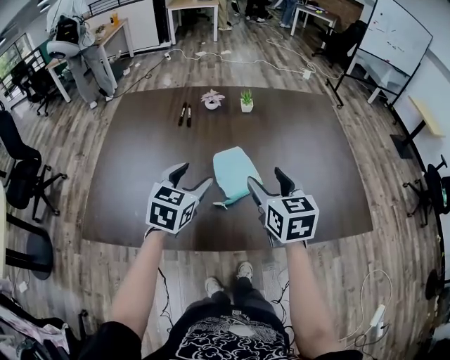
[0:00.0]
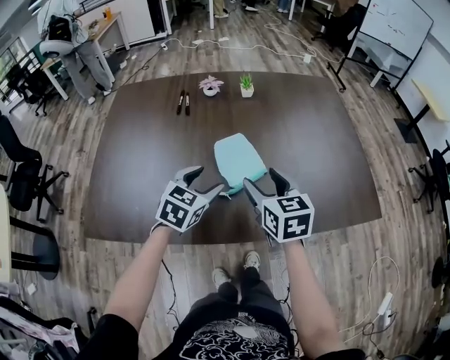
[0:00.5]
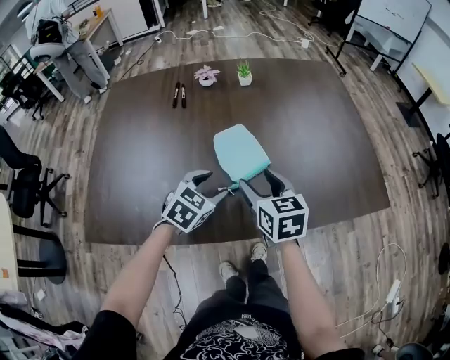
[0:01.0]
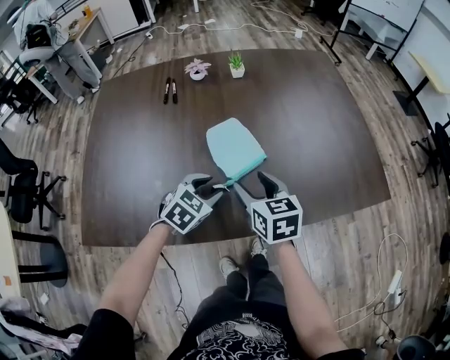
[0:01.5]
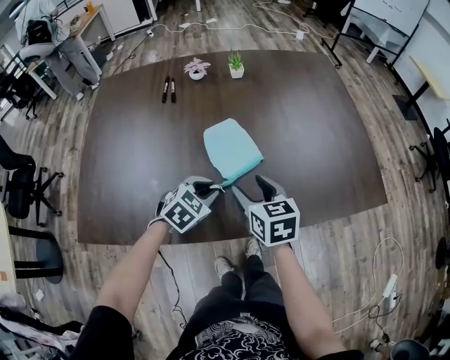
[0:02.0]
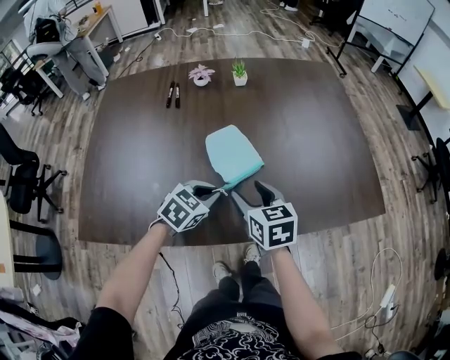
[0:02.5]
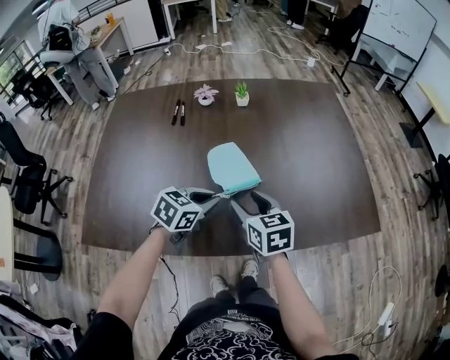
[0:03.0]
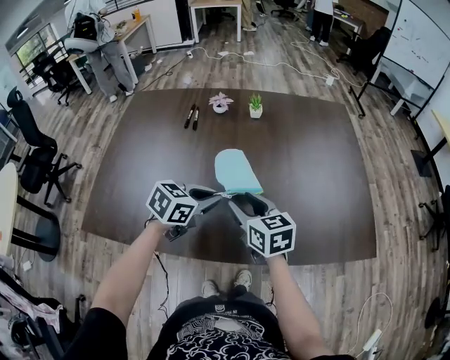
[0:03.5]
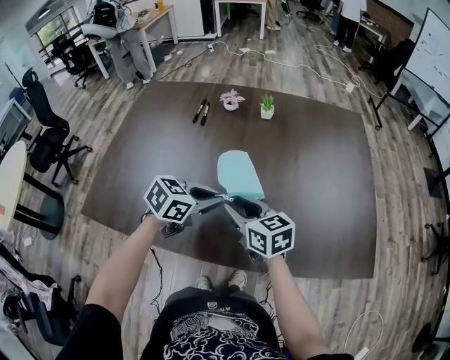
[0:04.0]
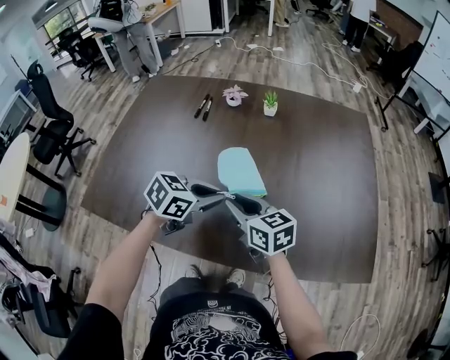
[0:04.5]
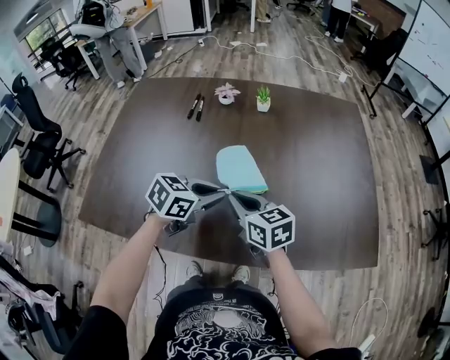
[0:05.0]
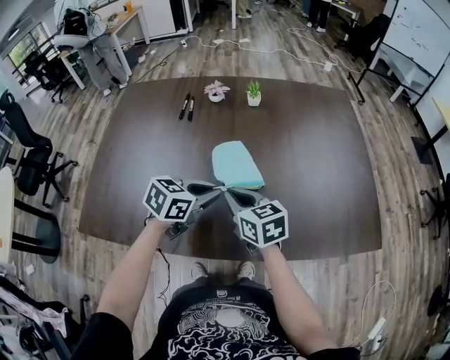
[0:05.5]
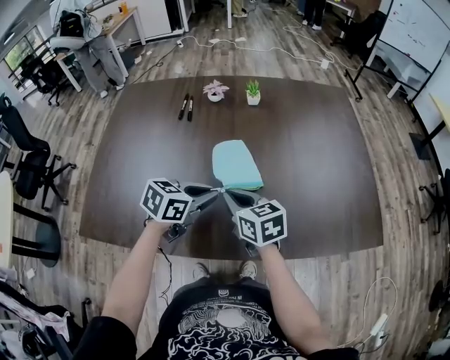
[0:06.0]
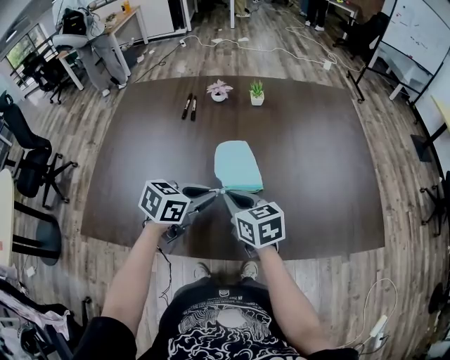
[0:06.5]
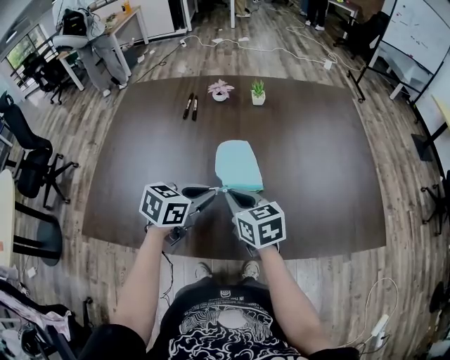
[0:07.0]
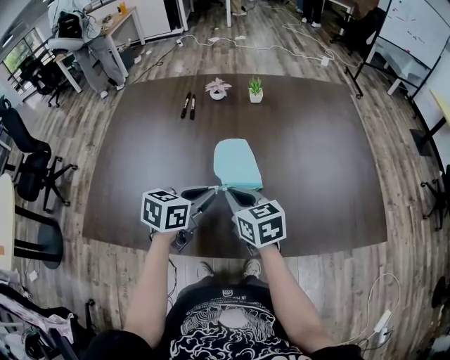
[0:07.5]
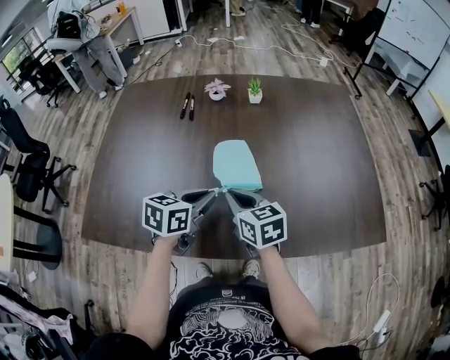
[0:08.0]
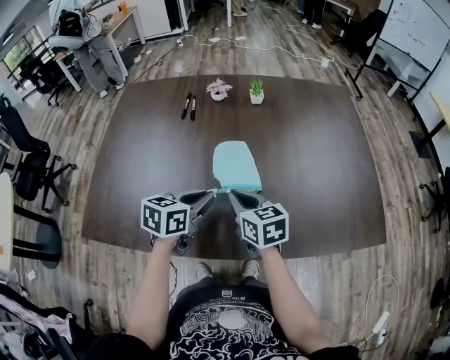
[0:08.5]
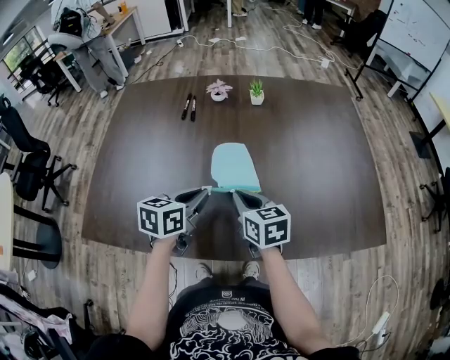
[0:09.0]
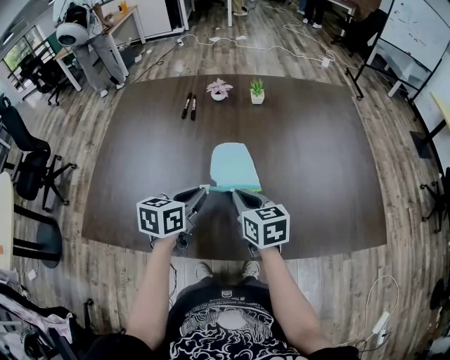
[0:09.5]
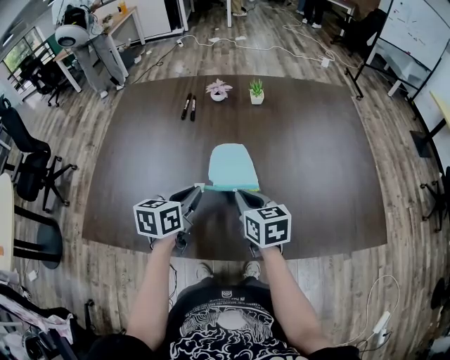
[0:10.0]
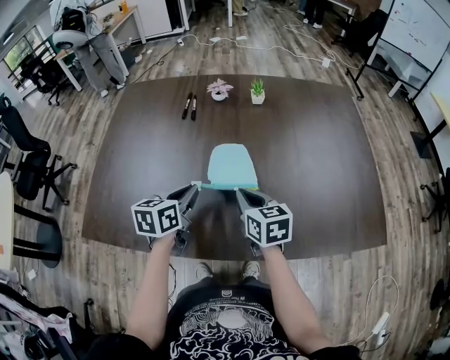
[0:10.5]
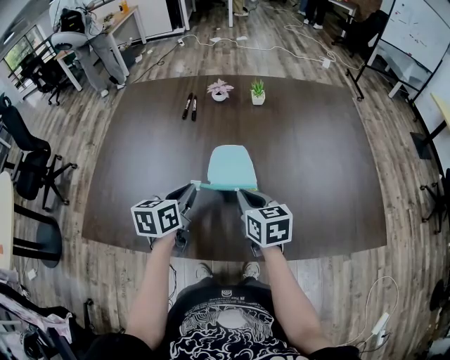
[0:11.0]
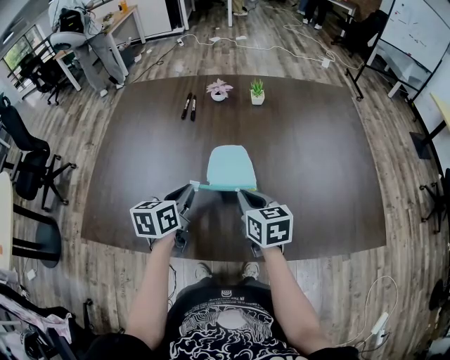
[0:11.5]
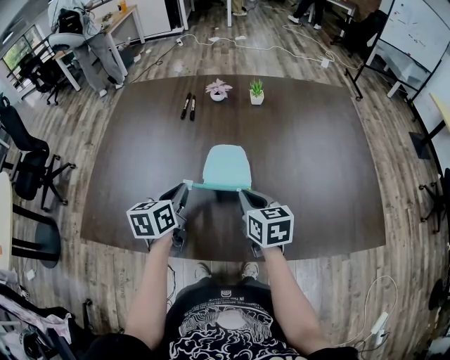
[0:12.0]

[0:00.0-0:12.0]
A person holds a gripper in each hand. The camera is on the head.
0:00.0 to 0:02.0: The grippers both shift downward by roughly 15 cm. The left gripper changes its angle by some 40 degrees, and closes.
0:02.0 to 0:04.0: The left gripper travels upward by some 10 cm, and changes its angle by about 30 degrees, while the right gripper ends up about 5 cm from where it was, changes its angle by about 30 degrees, and closes.
0:04.0 to 0:06.0: The right gripper closes its fingers.
0:06.0 to 0:08.0: The grippers stay close to where they were, moving slightly.
0:08.0 to 0:10.0: The left gripper ends up approximately 5 cm from where it was.
0:10.0 to 0:12.0: There are only small adjustments of the grippers.

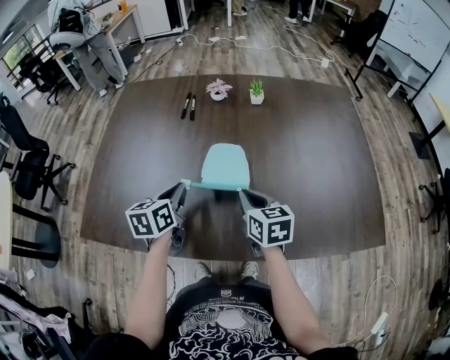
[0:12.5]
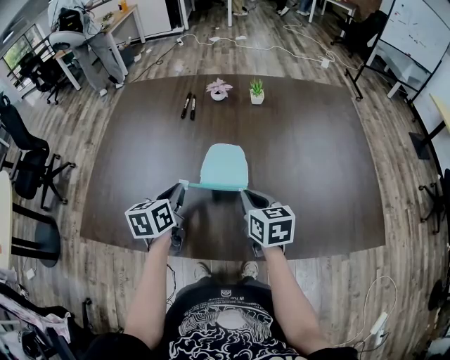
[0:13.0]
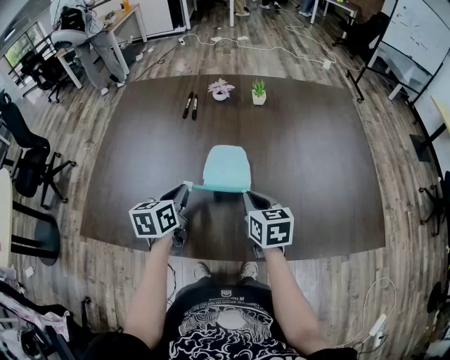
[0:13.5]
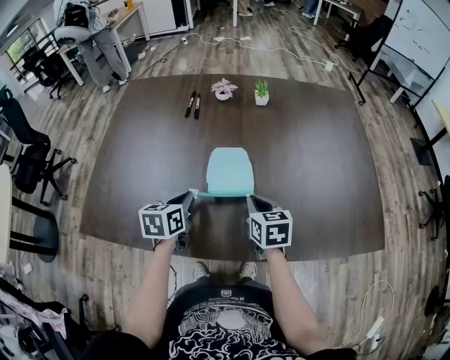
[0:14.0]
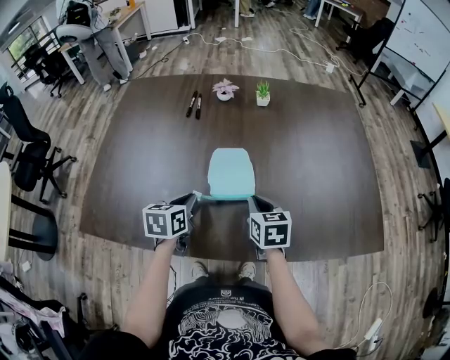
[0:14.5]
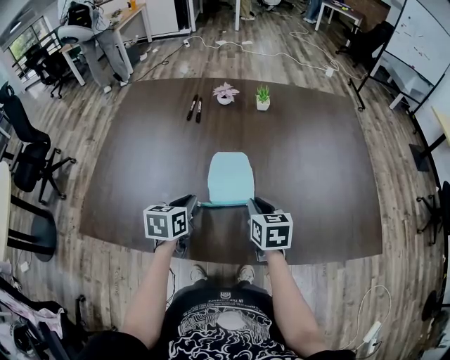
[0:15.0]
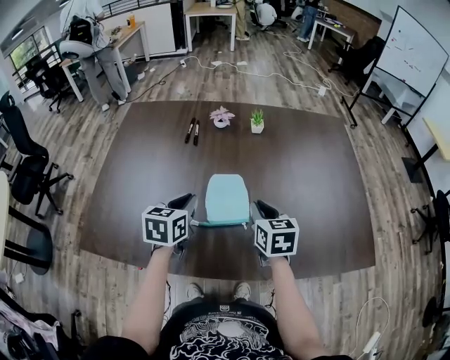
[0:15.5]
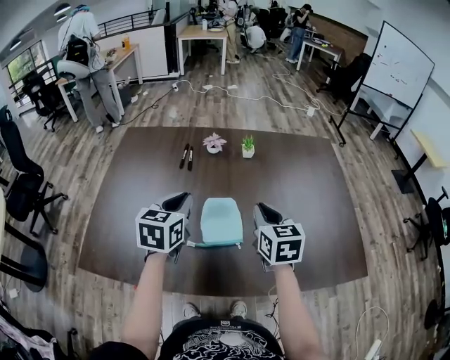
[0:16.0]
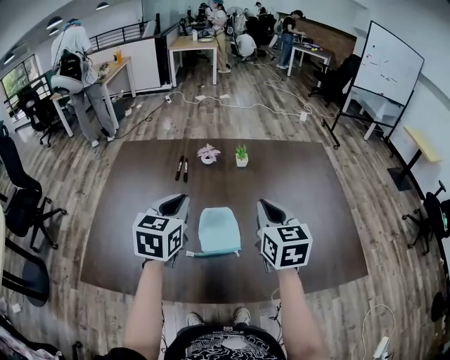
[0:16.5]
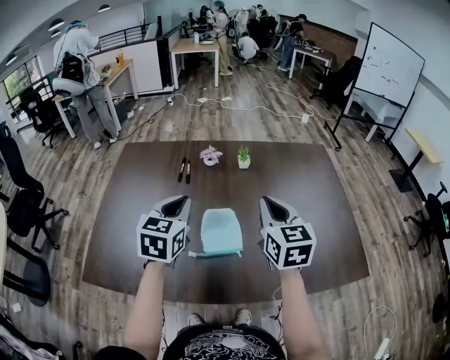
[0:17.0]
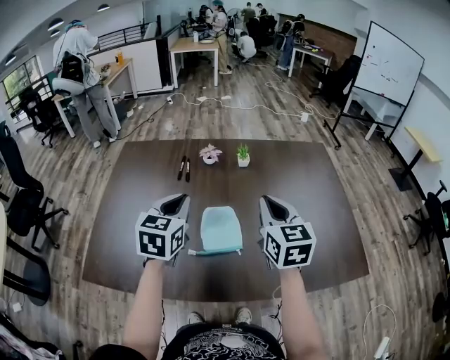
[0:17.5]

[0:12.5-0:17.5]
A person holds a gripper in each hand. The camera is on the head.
0:12.5 to 0:15.0: The left gripper ends up roughly 5 cm from where it was.
0:15.0 to 0:17.5: Both grippers travel together upward, roughly 25 cm. The right gripper changes its angle by approximately 30 degrees. The left gripper changes its angle by approximately 30 degrees.

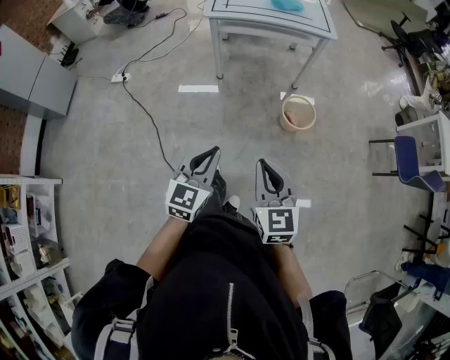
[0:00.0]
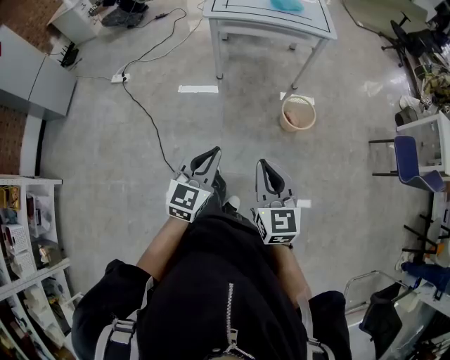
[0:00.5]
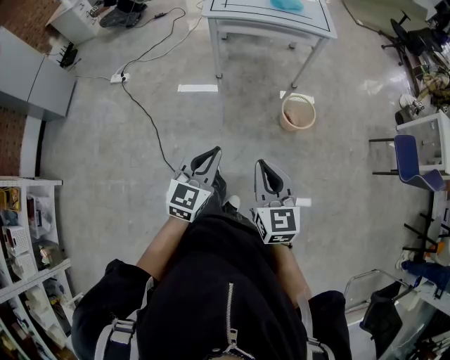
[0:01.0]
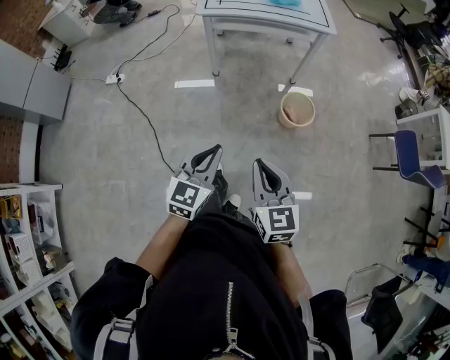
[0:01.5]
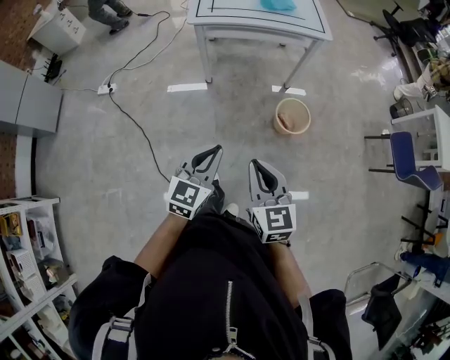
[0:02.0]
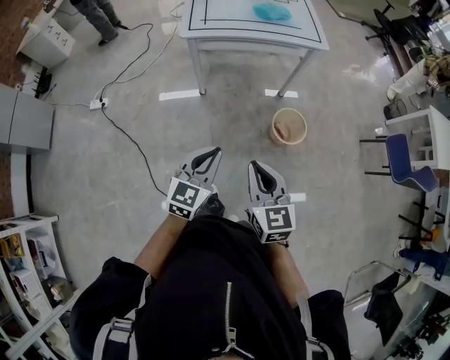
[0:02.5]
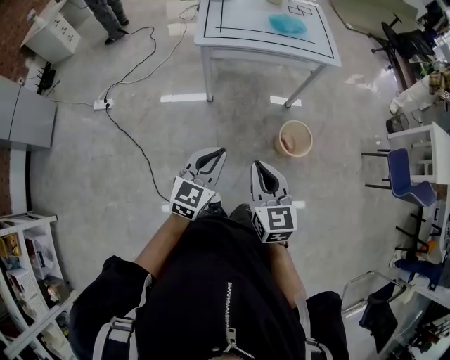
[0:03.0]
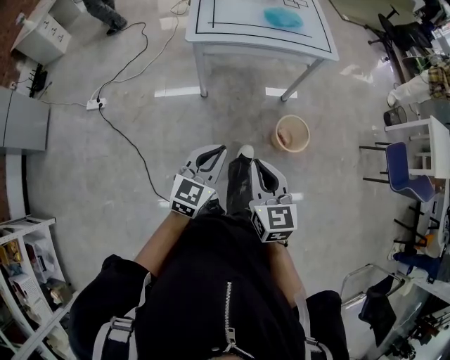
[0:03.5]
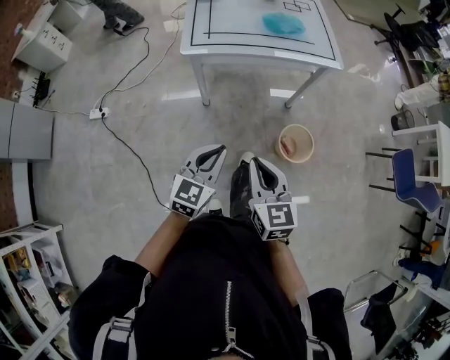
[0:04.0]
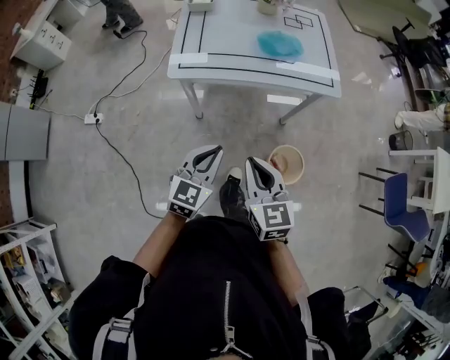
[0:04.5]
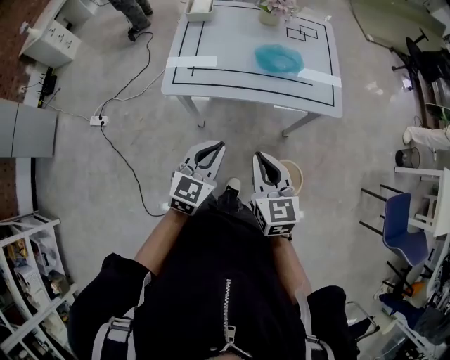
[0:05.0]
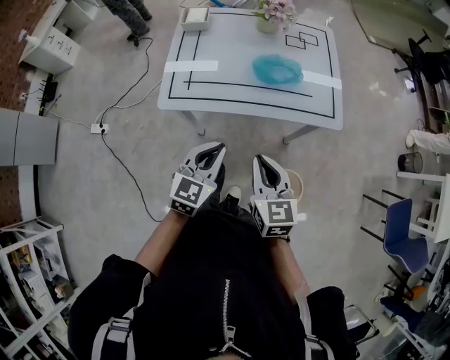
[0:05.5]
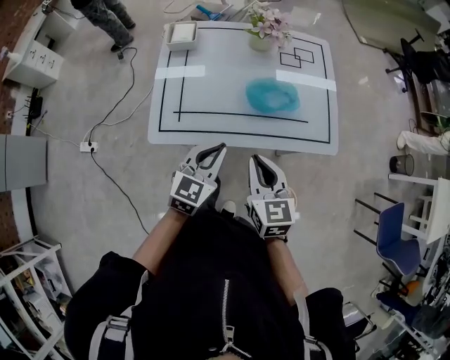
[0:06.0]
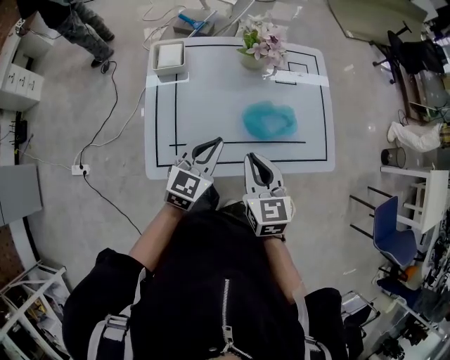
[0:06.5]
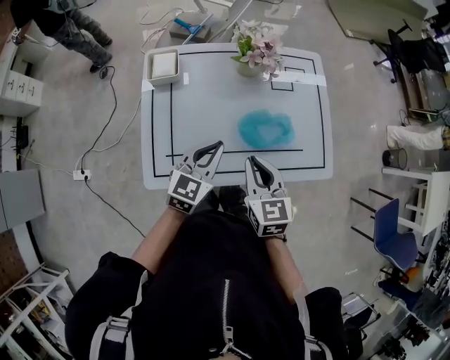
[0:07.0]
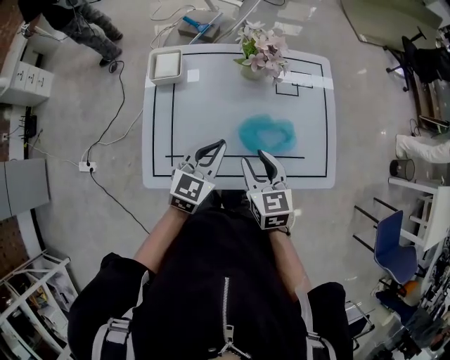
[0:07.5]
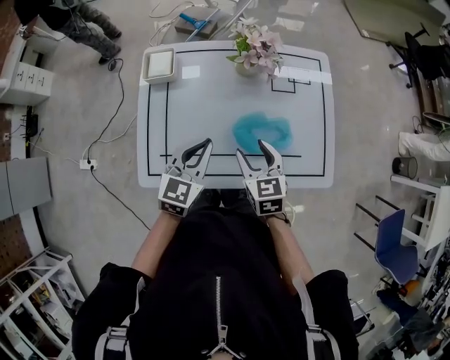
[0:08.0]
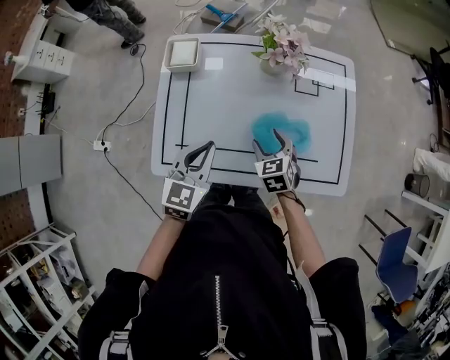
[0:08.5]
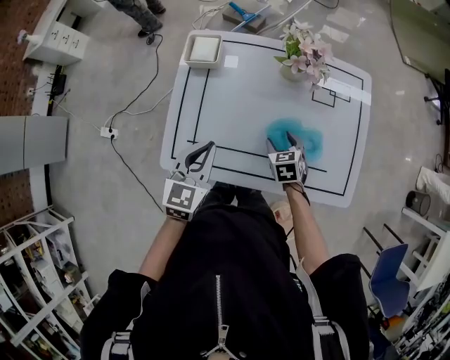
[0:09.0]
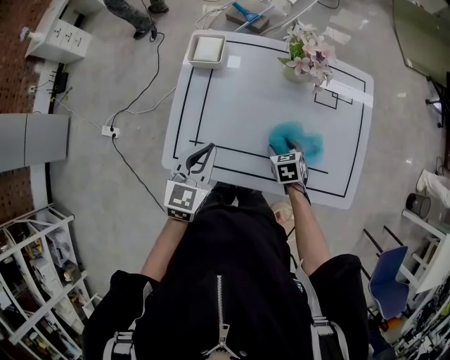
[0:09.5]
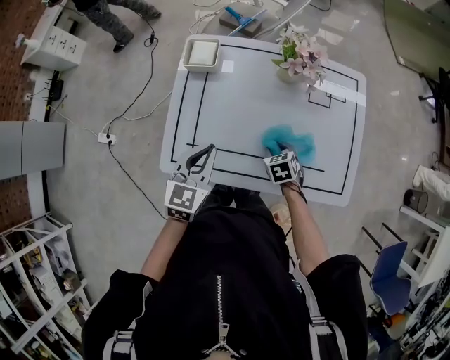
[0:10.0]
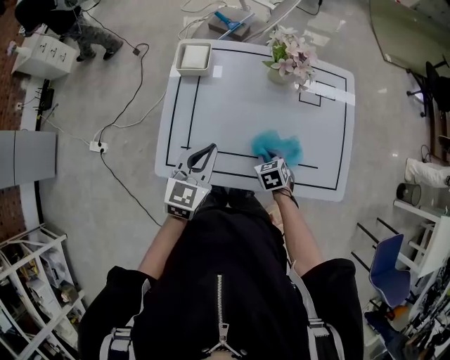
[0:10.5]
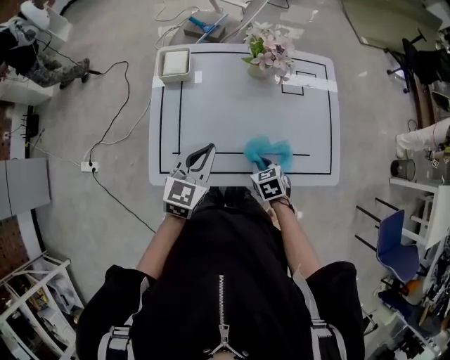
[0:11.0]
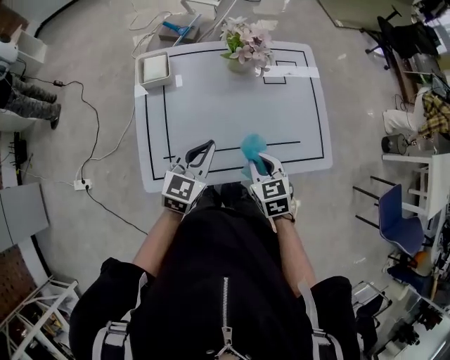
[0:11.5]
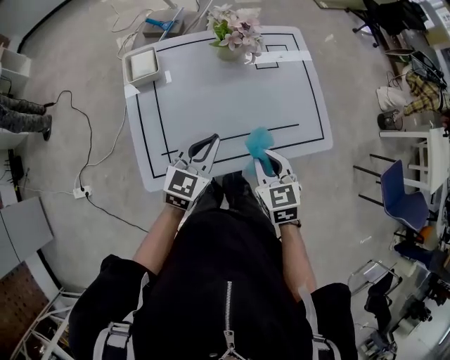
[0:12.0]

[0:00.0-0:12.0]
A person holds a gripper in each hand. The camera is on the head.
0:00.0 to 0:02.0: The grippers both shift forward by some 10 cm.
0:02.0 to 0:04.0: Both grippers move forward, roughly 25 cm.
0:04.0 to 0:06.0: The two grippers travel together, forward, approximately 40 cm.
0:06.0 to 0:08.0: Both grippers travel together forward, approximately 20 cm. The right gripper opens its fingers.
0:08.0 to 0:10.0: The left gripper heads to the left, covering roughly 10 cm. The right gripper goes roughly 15 cm downward, and changes its angle by some 30 degrees.
0:10.0 to 0:12.0: The right gripper shifts some 20 cm upward, changes its angle by about 30 degrees, and closes its fingers. The left gripper shifts by about 5 cm, and rotates roughly 30 degrees.
